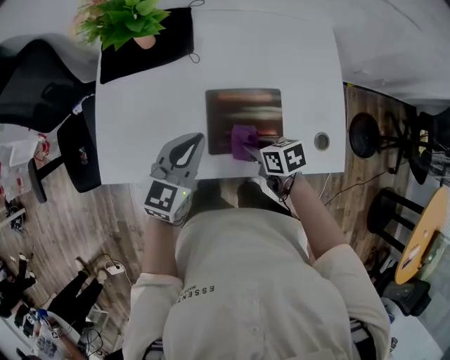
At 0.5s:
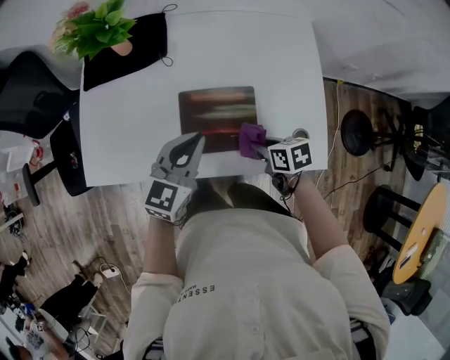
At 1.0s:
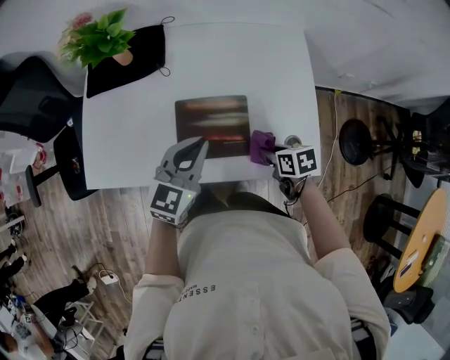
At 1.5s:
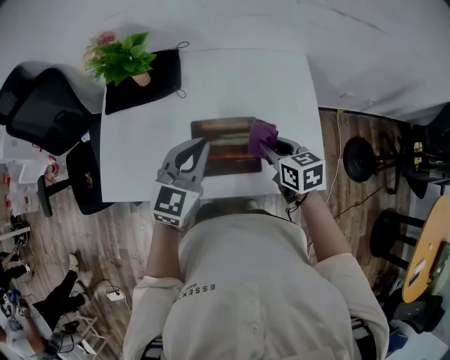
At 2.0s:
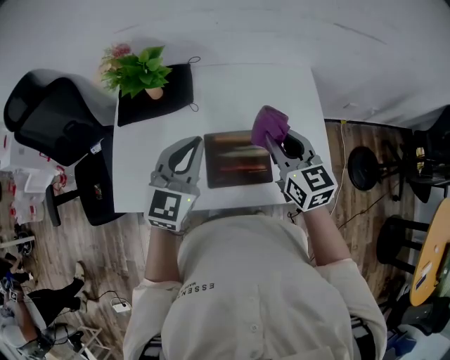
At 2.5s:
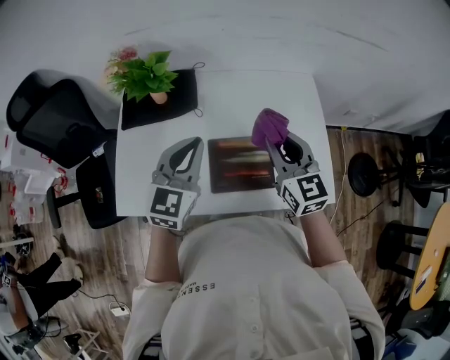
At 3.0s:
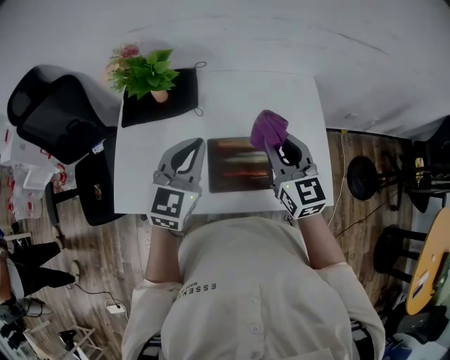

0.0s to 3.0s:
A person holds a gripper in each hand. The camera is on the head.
0.0s to 1.5s: The left gripper moves to the right and upward, roughly 10 cm. The right gripper moves upward and to the right, approximately 15 cm, and changes its angle by some 30 degrees.
1.5s to 3.0s: The left gripper moves to the left and upward, roughly 10 cm, while the right gripper shifts about 15 cm upward, and turns by some 40 degrees.

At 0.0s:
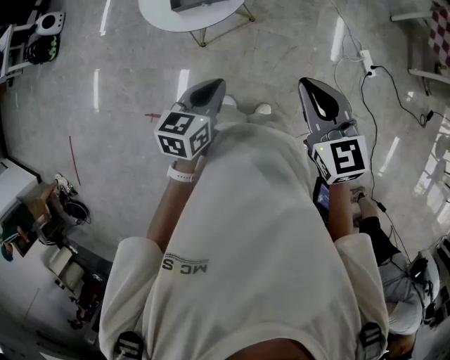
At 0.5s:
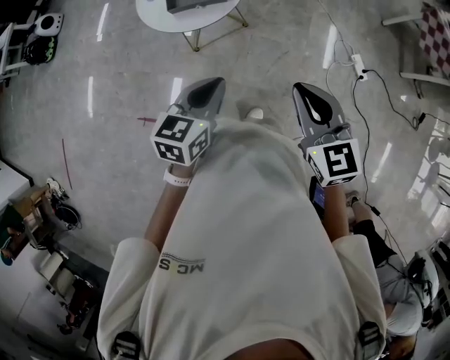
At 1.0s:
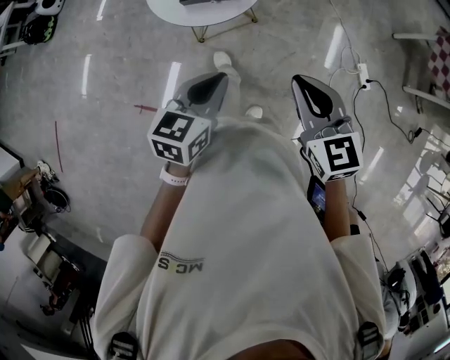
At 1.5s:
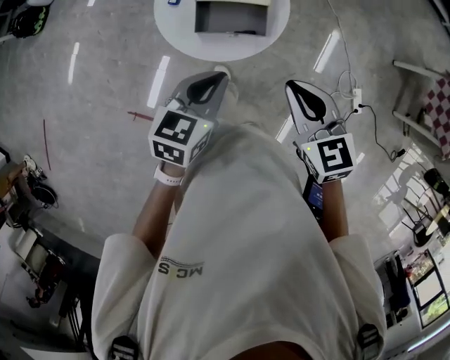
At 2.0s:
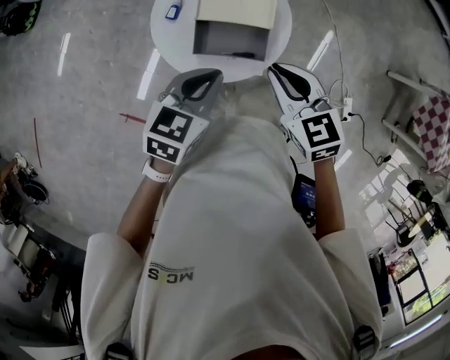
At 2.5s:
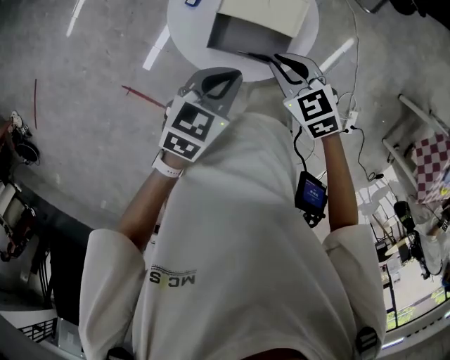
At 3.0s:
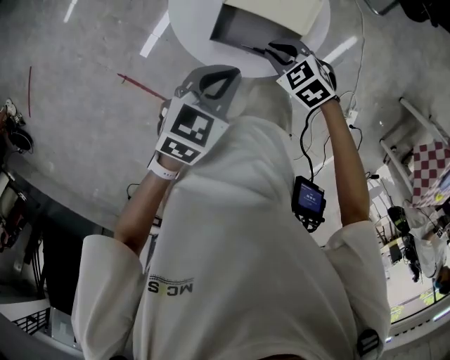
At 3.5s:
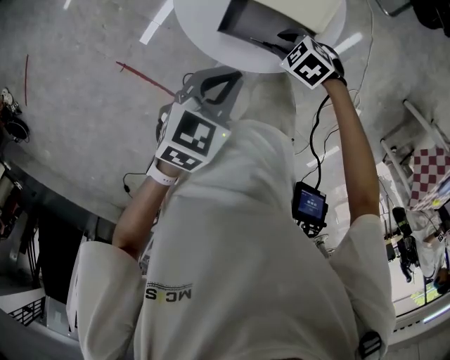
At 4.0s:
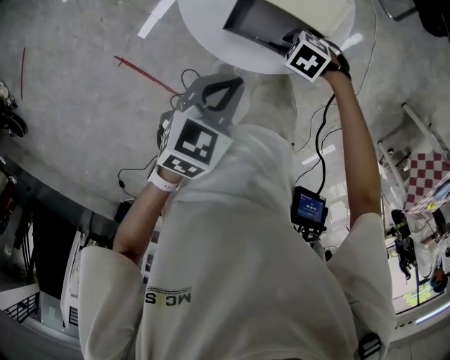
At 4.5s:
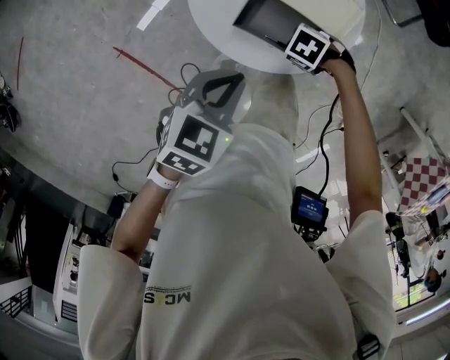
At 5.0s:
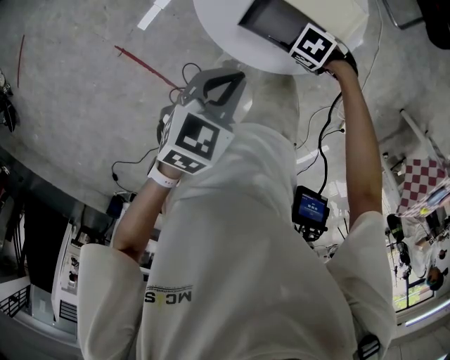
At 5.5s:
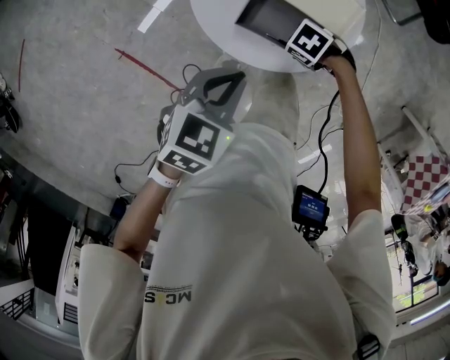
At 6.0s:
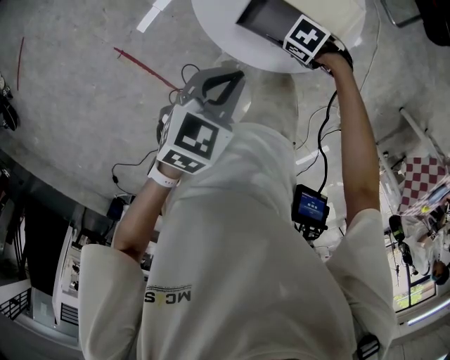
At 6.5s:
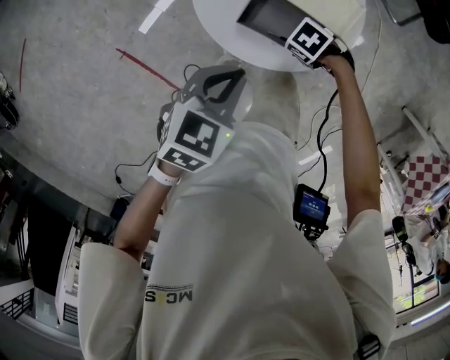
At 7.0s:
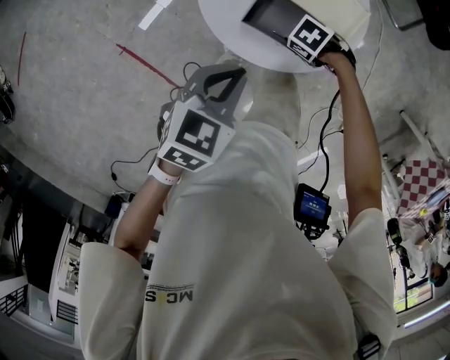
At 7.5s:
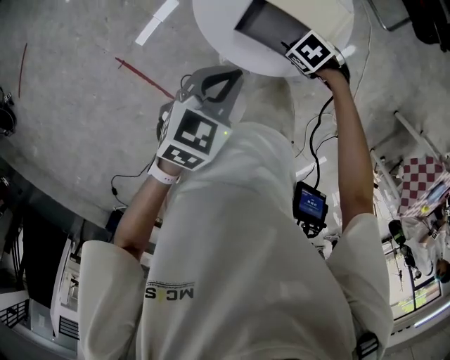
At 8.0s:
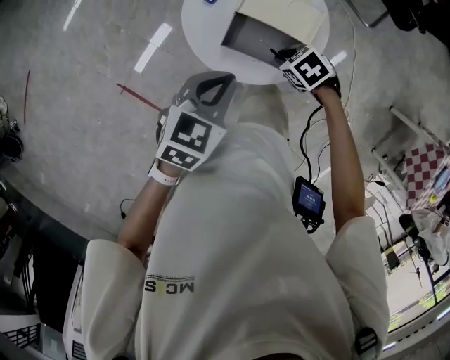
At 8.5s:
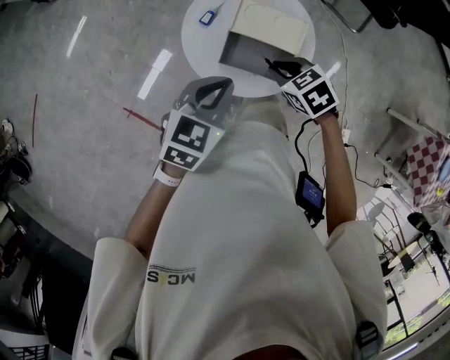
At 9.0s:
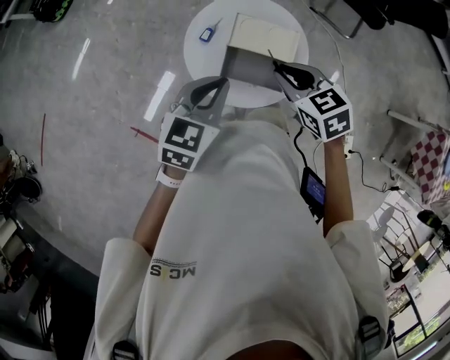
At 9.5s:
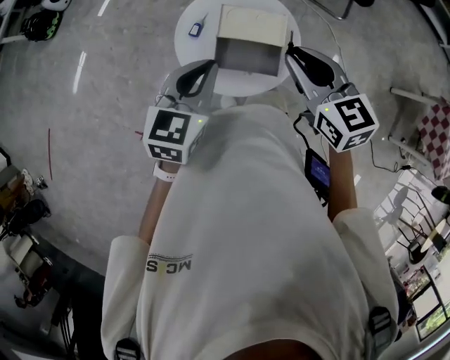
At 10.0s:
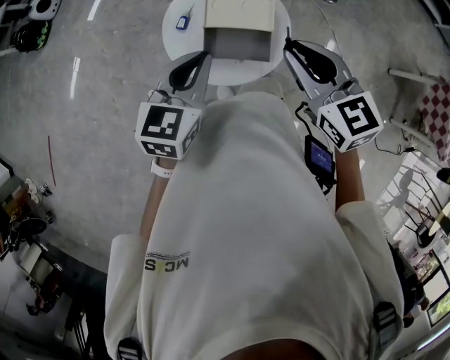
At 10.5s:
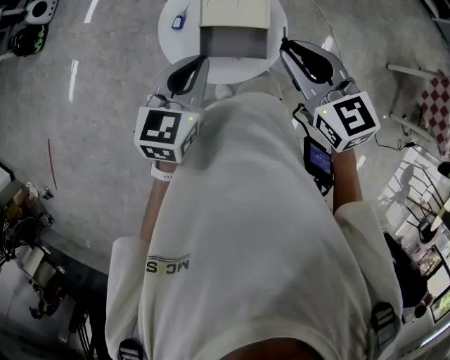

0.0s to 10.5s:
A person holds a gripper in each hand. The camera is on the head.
0.0s to 2.0s: The left gripper heads forward, covering roughly 30 cm, while the right gripper shifts about 40 cm forward and to the left, and swivels some 20 degrees.
2.0s to 4.0s: The left gripper travels downward by roughly 10 cm; the right gripper is displaced downward by roughly 30 cm, angles its fingers downward, by approximately 30 degrees, and opens.
4.0s to 6.5s: There are only small adjustments of the grippers.
6.5s to 8.5s: The left gripper shifts approximately 10 cm upward, while the right gripper heads upward, covering approximately 20 cm, and rotates about 40 degrees.
8.5s to 10.5s: The right gripper moves upward, about 20 cm, and points its fingers roughly 40 degrees further upward. The left gripper goes about 5 cm upward.

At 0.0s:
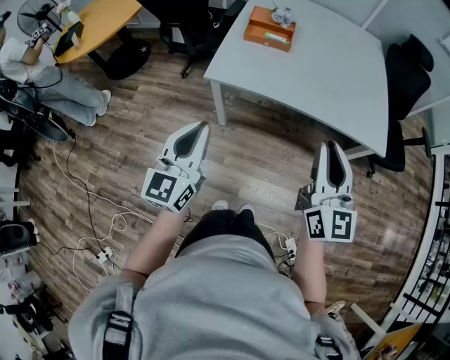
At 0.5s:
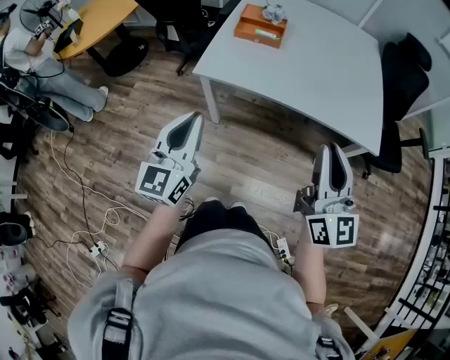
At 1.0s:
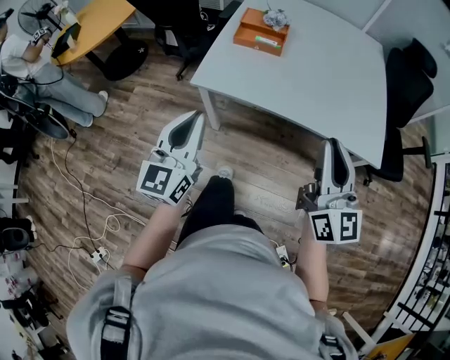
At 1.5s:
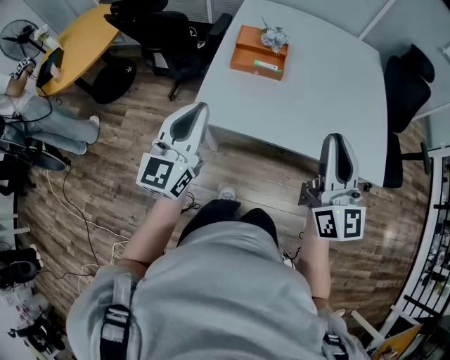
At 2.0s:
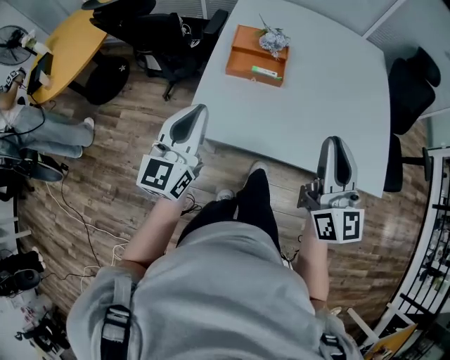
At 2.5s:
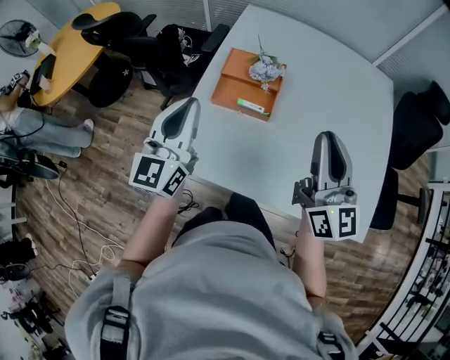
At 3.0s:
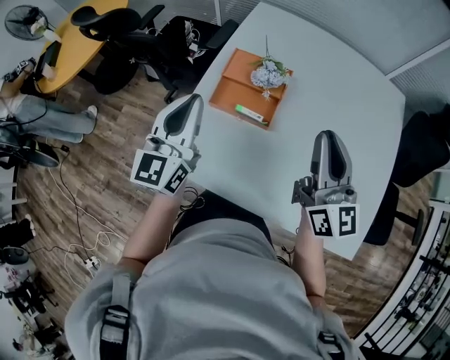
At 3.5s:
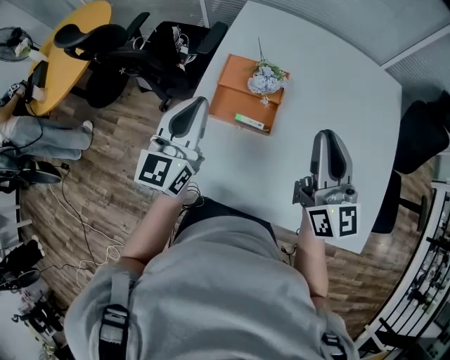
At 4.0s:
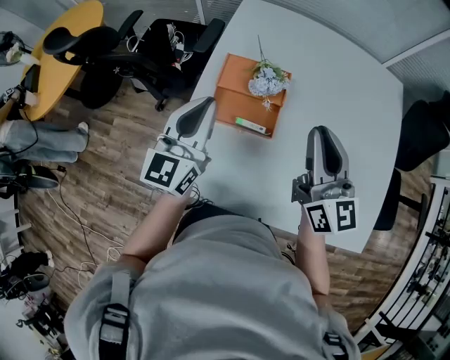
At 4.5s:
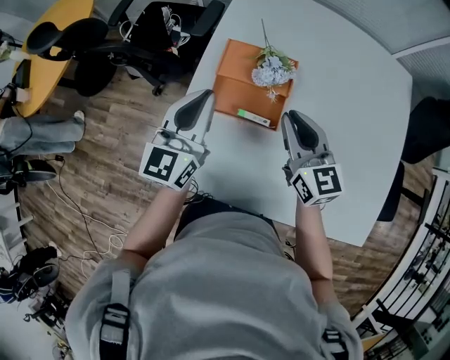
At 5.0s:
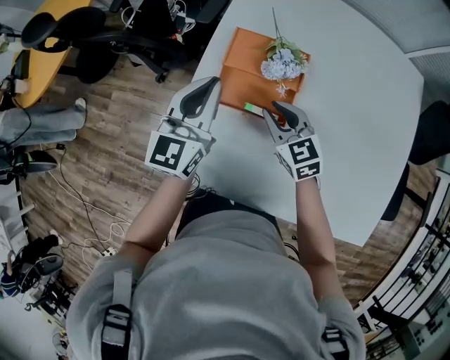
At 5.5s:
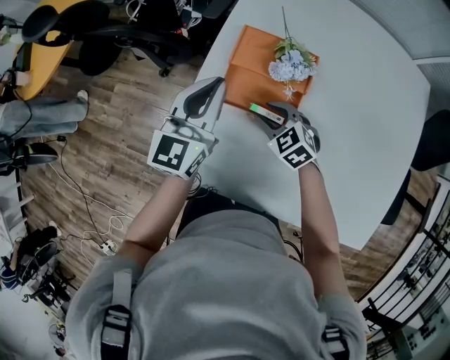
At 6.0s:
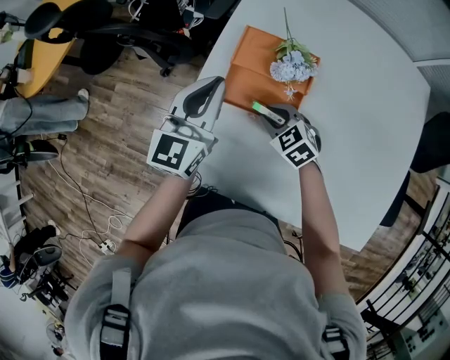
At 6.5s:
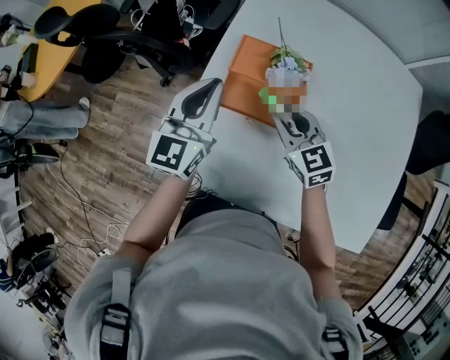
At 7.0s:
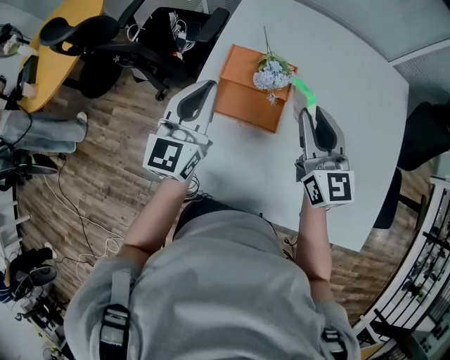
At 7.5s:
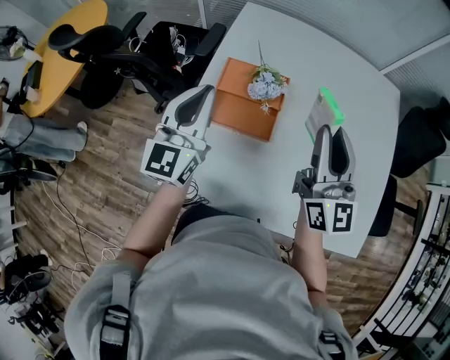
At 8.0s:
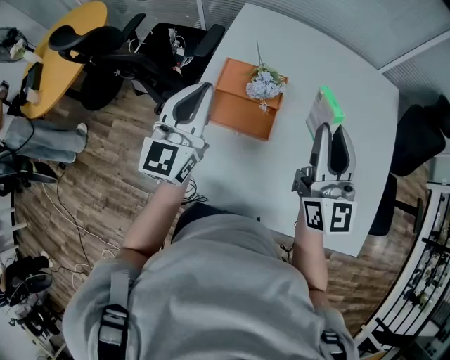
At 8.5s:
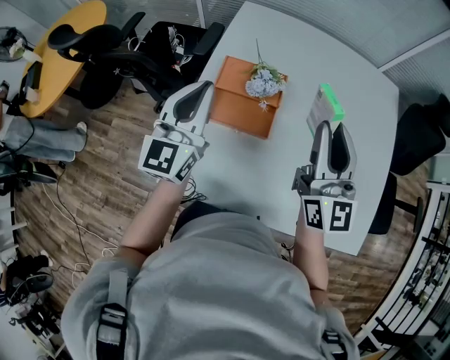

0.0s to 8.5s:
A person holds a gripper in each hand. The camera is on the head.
0.0s to 2.0s: The grippers both shift forward by about 35 cm.
2.0s to 4.0s: The grippers both shift forward by approximately 30 cm.
4.0s to 6.5s: The left gripper heads downward and forward, covering roughly 10 cm, while the right gripper travels downward, to the left and forward by approximately 20 cm, and swivels some 40 degrees.
6.5s to 8.5s: The right gripper moves upward and to the right, roughly 25 cm, and tilts its fingers about 40 degrees upward. The left gripper shifts approximately 10 cm upward.

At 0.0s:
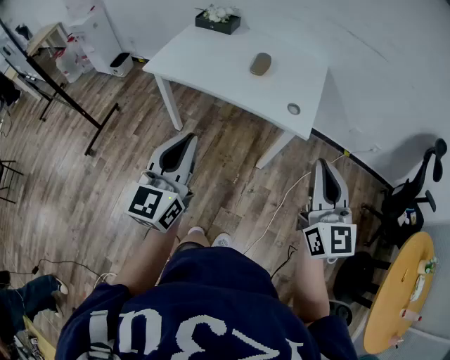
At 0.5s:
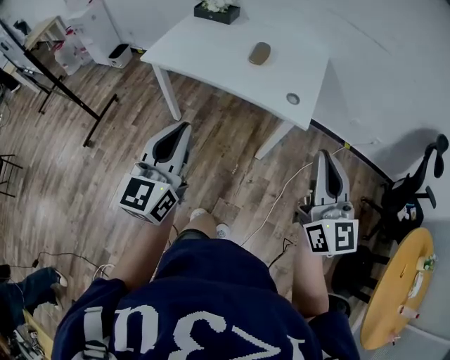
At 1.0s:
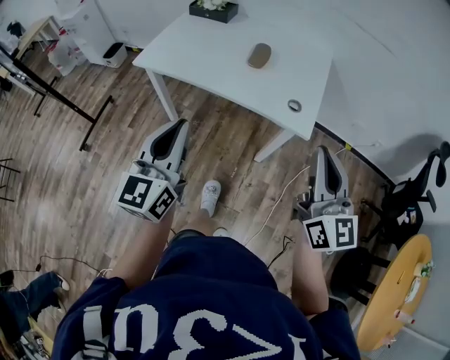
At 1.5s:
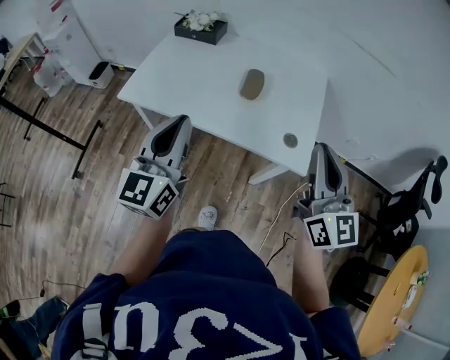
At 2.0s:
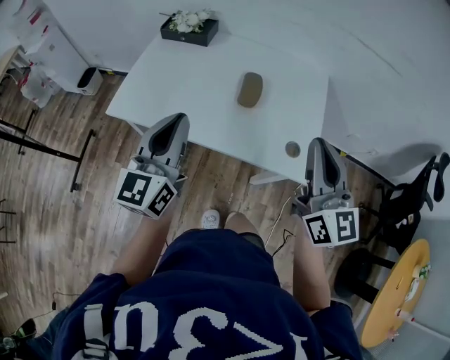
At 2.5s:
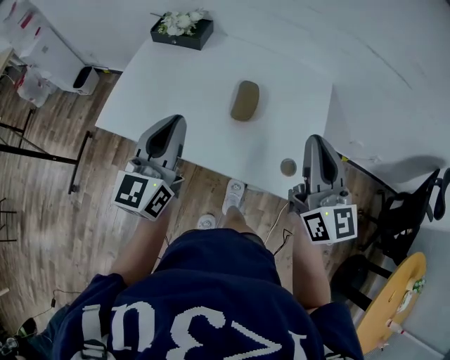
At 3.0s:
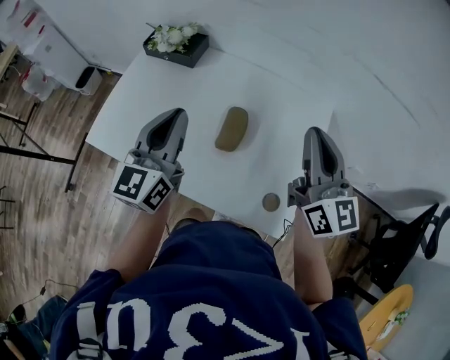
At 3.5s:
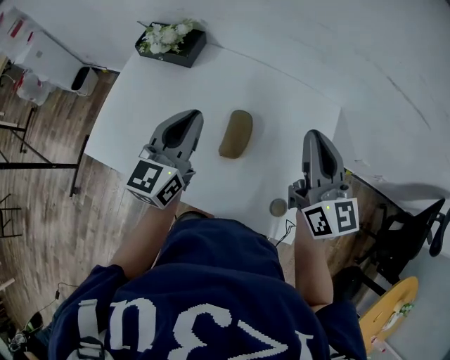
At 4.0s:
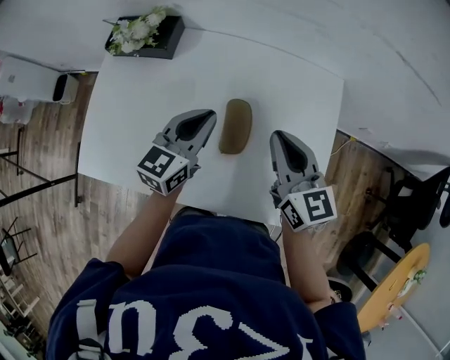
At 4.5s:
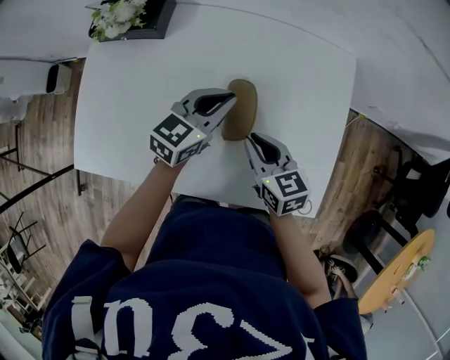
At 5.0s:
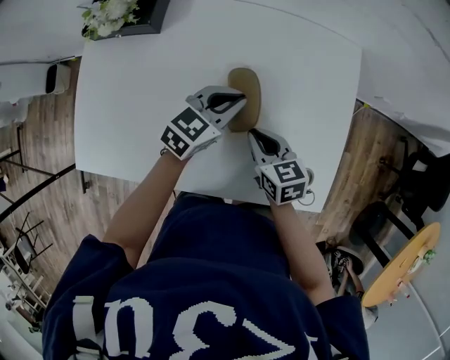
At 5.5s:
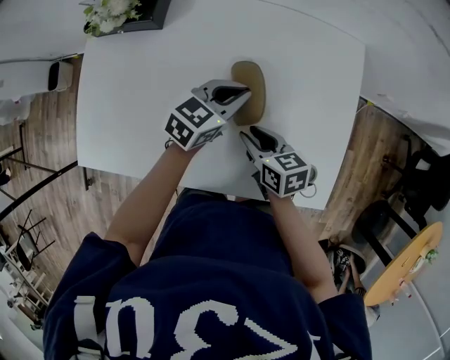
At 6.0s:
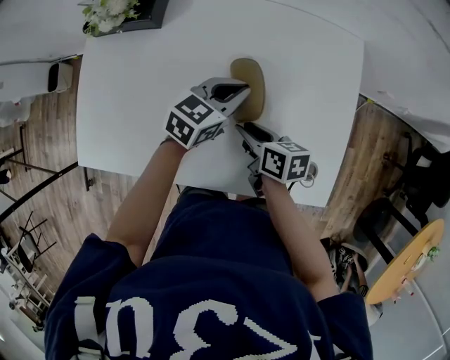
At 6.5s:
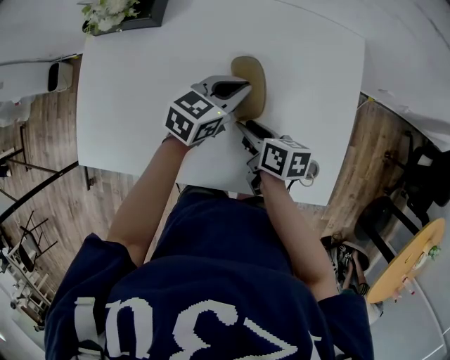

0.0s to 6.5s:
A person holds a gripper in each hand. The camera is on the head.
0.0s to 2.0s: The grippers both shift forward by about 30 cm.
2.0s to 4.5s: The left gripper is displaced forward, downward and to the right by roughly 40 cm, and rotates approximately 40 degrees. The right gripper moves downward and forward, about 40 cm, and tips its fingers downward by approximately 40 degrees.
4.5s to 6.5s: The left gripper ends up some 5 cm from where it was. Meanwhile the right gripper shifts about 5 cm downward, rotates about 40 degrees, and opens up.
